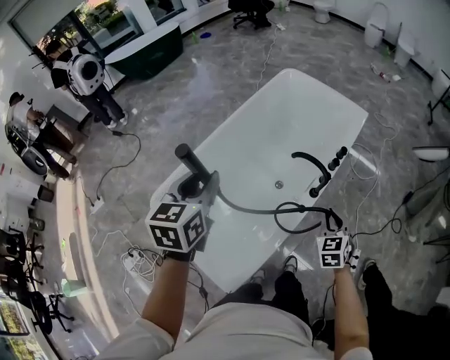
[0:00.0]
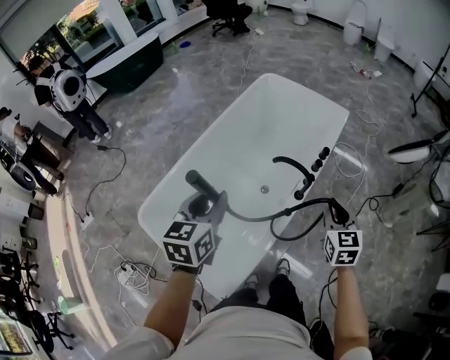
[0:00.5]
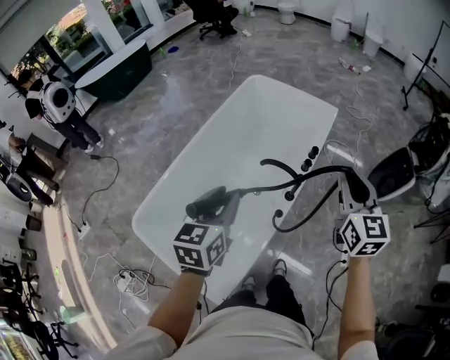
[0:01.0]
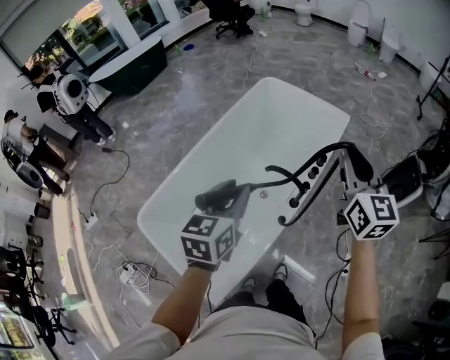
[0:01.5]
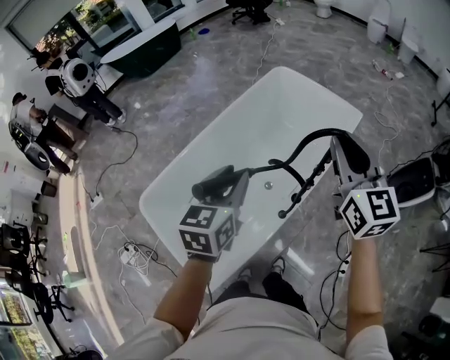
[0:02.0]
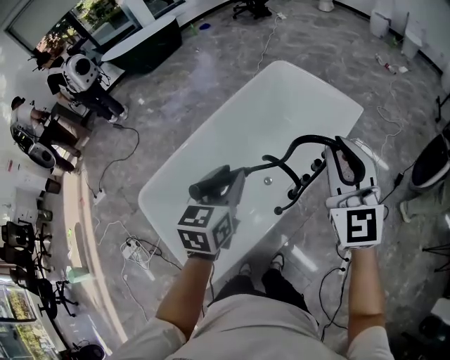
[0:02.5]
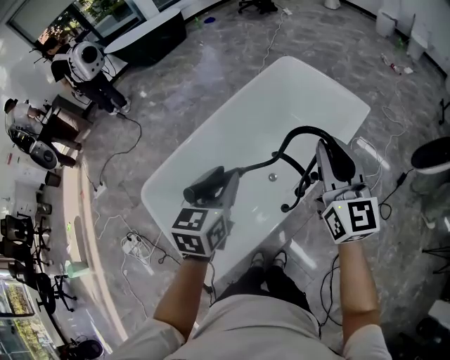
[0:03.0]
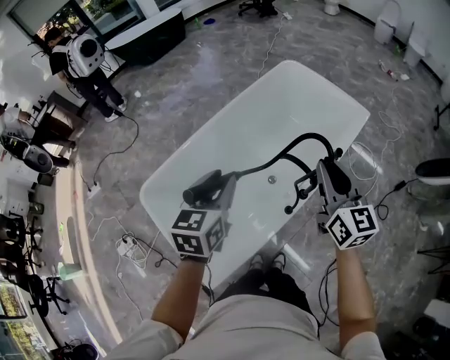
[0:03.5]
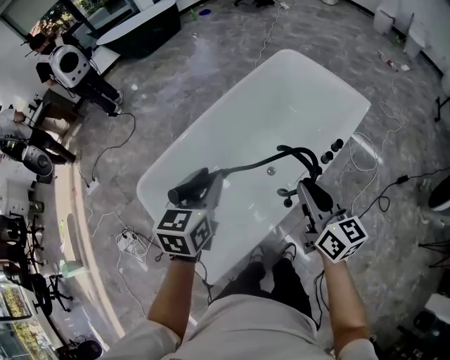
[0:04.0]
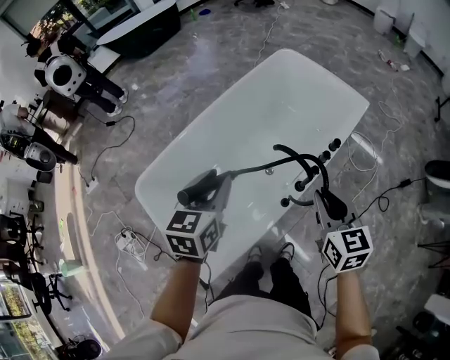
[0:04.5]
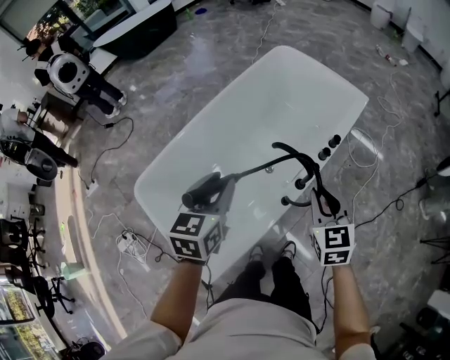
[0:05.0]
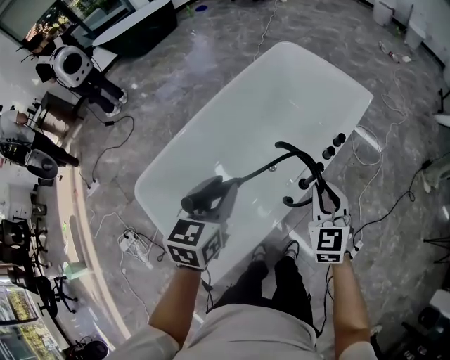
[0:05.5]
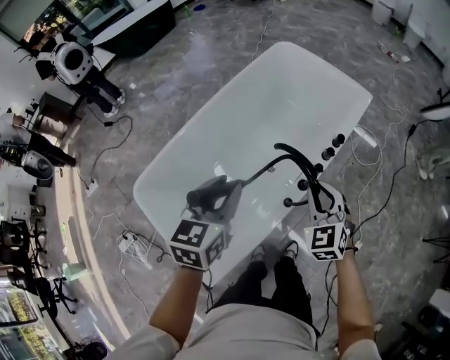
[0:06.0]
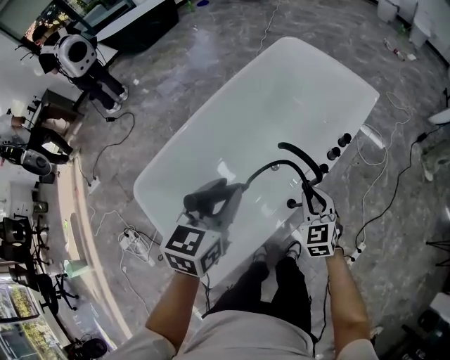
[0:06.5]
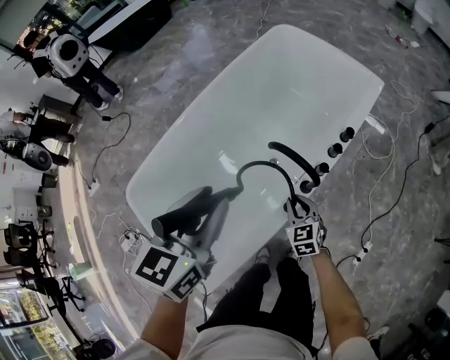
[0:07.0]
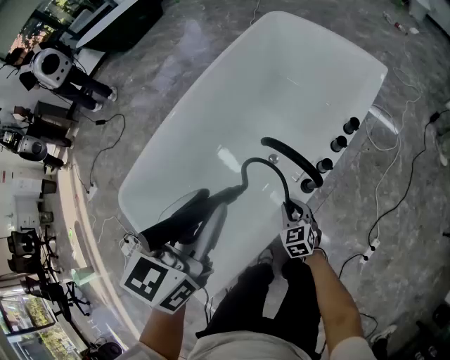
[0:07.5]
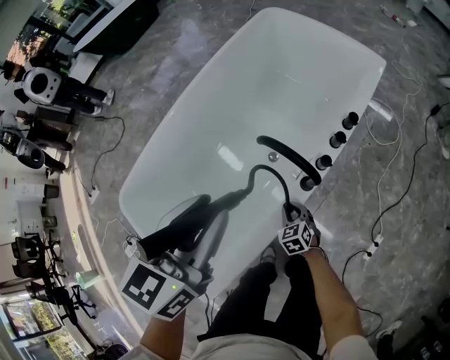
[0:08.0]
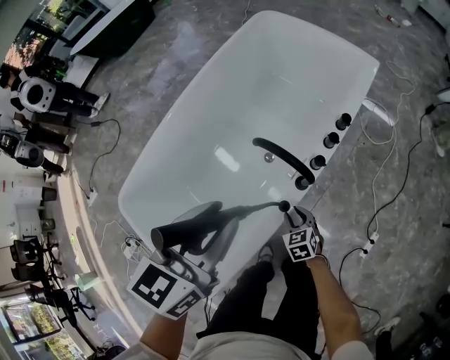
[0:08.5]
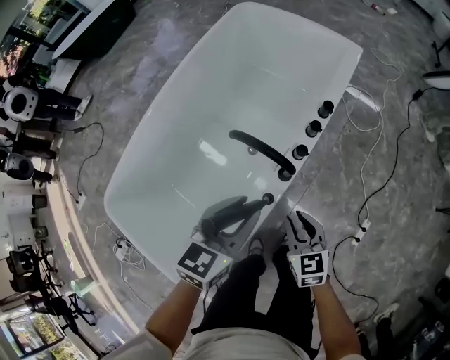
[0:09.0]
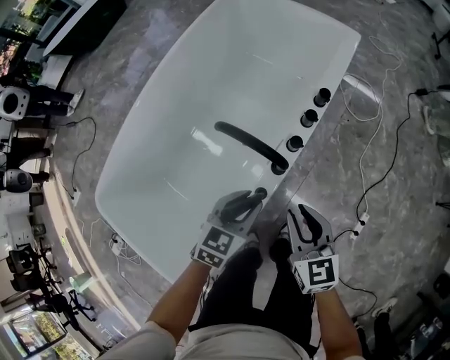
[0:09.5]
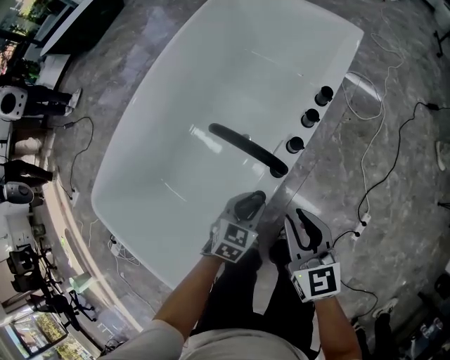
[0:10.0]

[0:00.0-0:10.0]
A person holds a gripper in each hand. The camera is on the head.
0:00.0 to 0:02.0: The right gripper heads upward and forward, covering about 35 cm, and points its fingers some 30 degrees further upward; the left gripper shifts roughly 20 cm to the right and forward.
0:02.0 to 0:04.0: The right gripper moves downward and to the left, approximately 20 cm, and turns by about 30 degrees. The left gripper shifts approximately 10 cm to the left and downward.
0:04.0 to 0:06.0: The right gripper goes approximately 10 cm downward, and rolls counterclockwise, seen from behind, by roughly 50 degrees; the left gripper goes some 5 cm to the right.
0:06.0 to 0:08.0: The right gripper shifts approximately 40 cm downward, and swivels approximately 30 degrees; the left gripper shifts some 5 cm to the right.
0:08.0 to 0:10.0: The left gripper goes roughly 35 cm downward, and changes its angle by some 30 degrees. The right gripper goes about 25 cm upward and to the right, and turns by some 40 degrees.

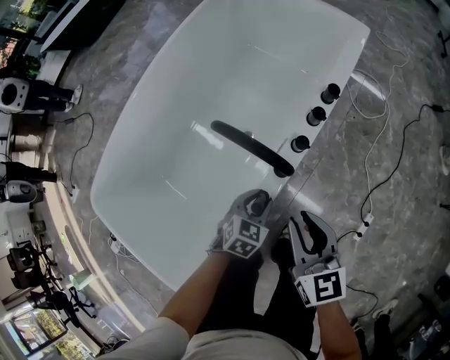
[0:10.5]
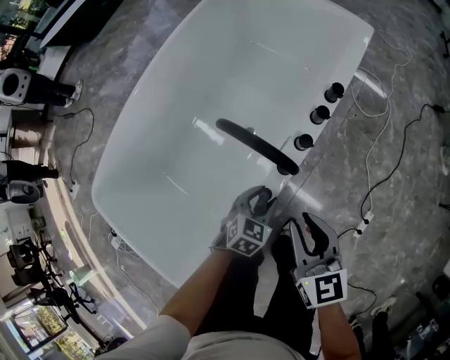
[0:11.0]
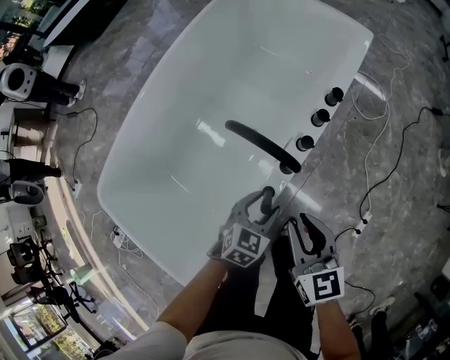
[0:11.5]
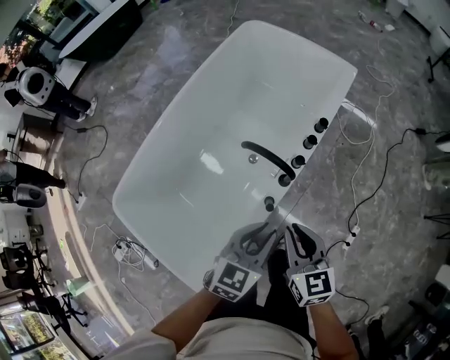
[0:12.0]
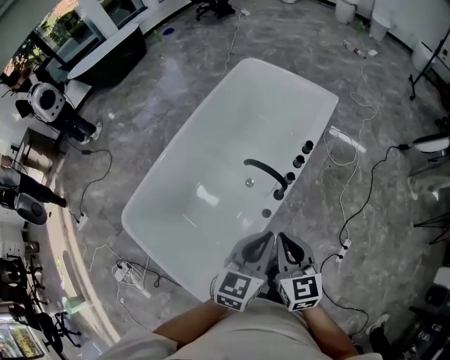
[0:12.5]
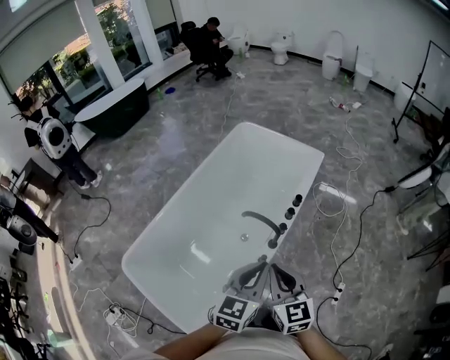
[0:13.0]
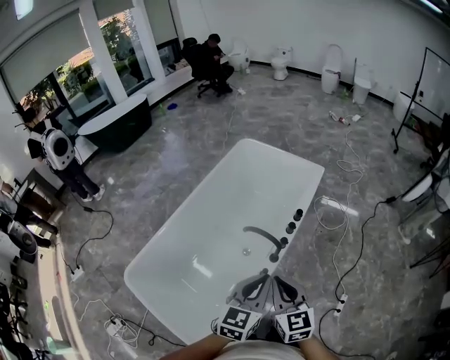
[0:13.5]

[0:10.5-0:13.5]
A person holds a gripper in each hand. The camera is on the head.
0:10.5 to 0:12.0: The left gripper heads upward, covering some 30 cm, and changes its angle by about 20 degrees, while the right gripper heads upward, covering approximately 10 cm.
0:12.0 to 0:13.5: Both grippers move upward, some 15 cm. The left gripper closes its fingers.

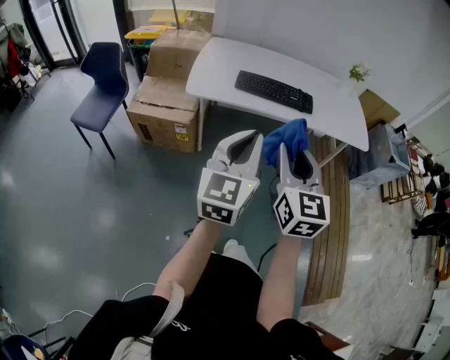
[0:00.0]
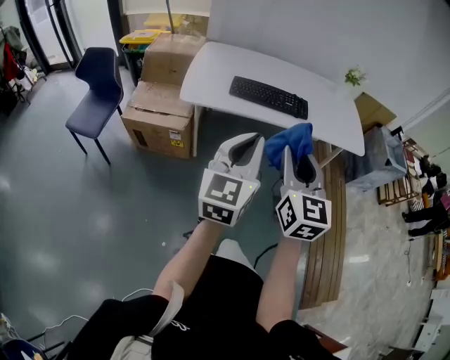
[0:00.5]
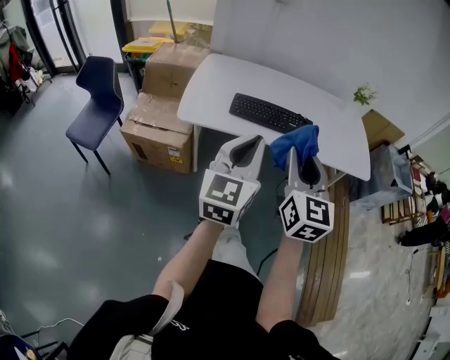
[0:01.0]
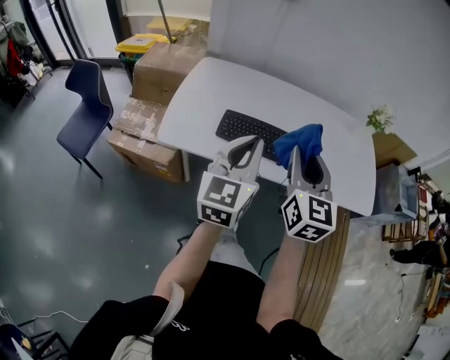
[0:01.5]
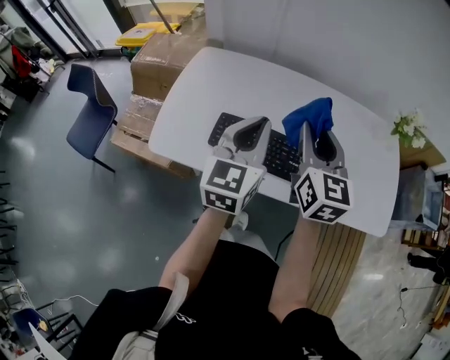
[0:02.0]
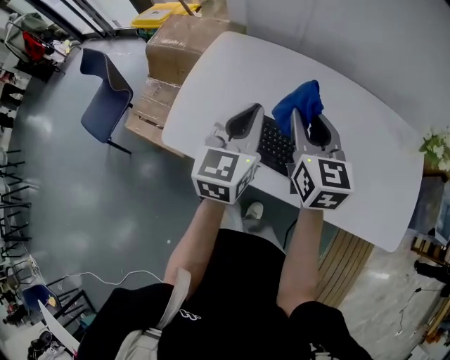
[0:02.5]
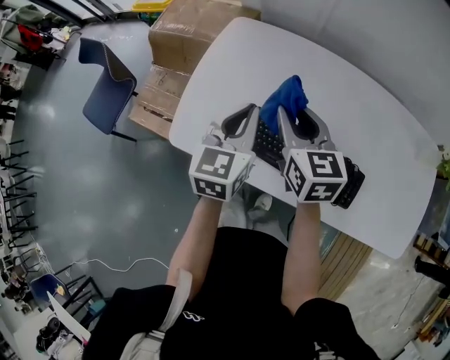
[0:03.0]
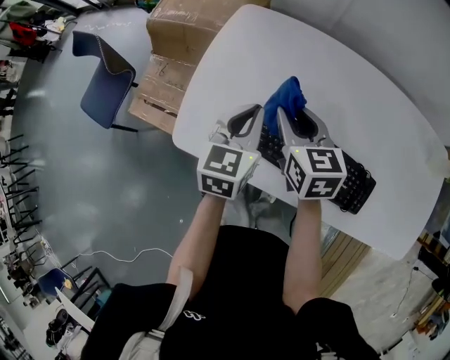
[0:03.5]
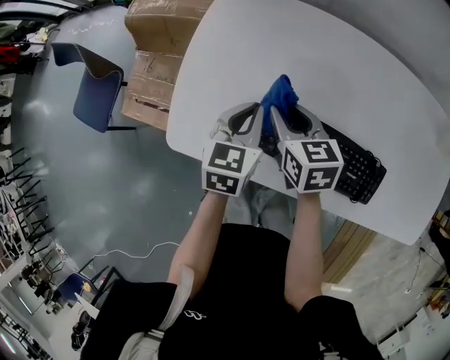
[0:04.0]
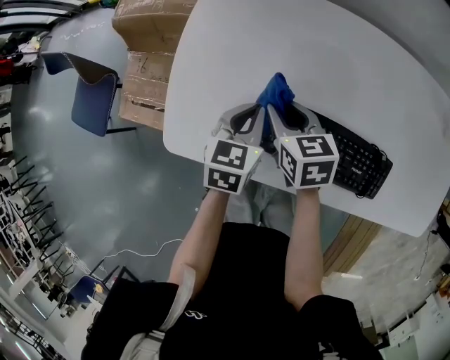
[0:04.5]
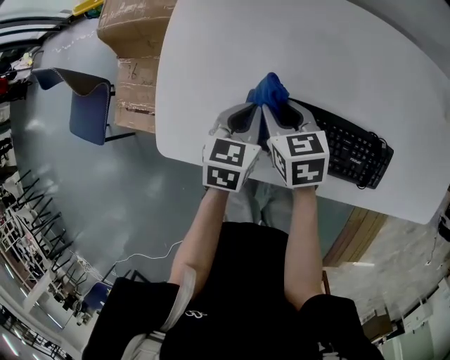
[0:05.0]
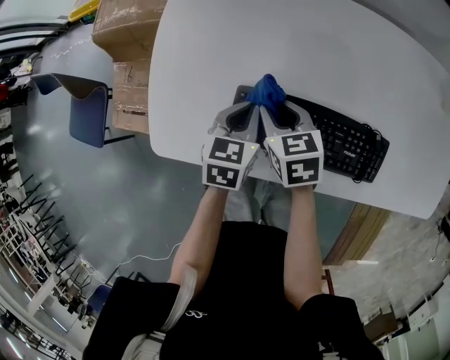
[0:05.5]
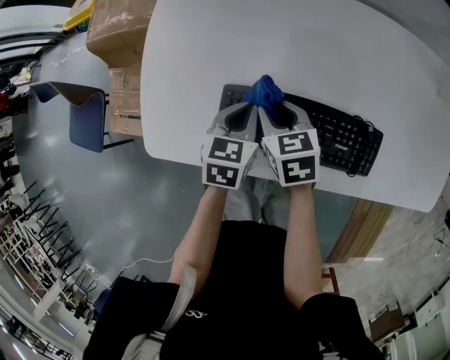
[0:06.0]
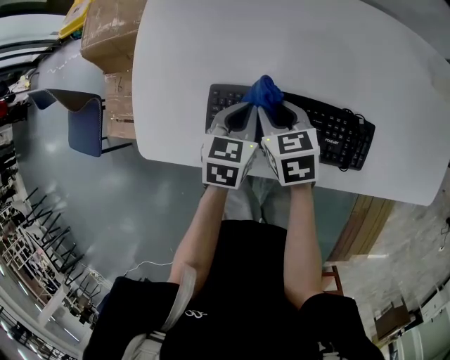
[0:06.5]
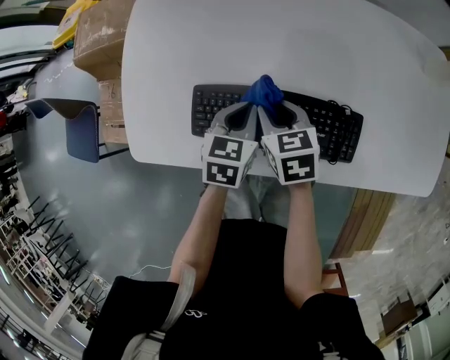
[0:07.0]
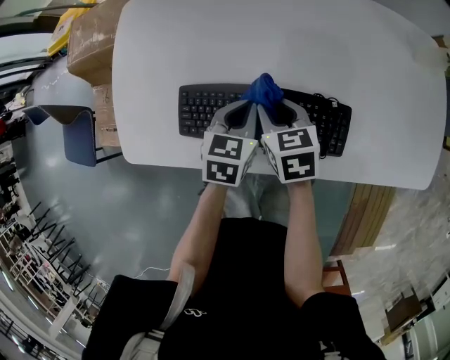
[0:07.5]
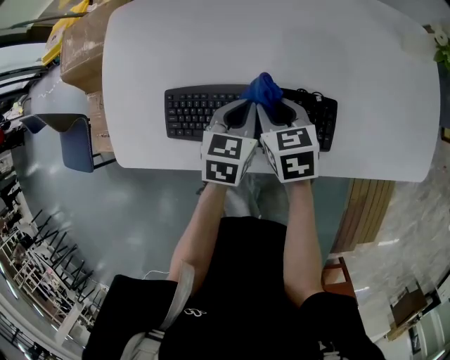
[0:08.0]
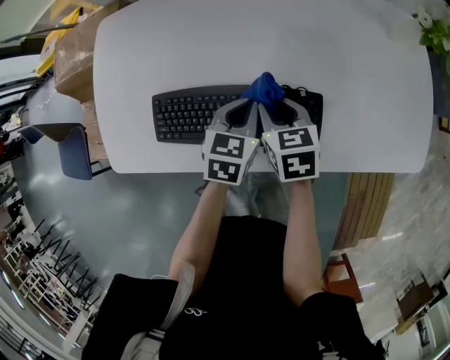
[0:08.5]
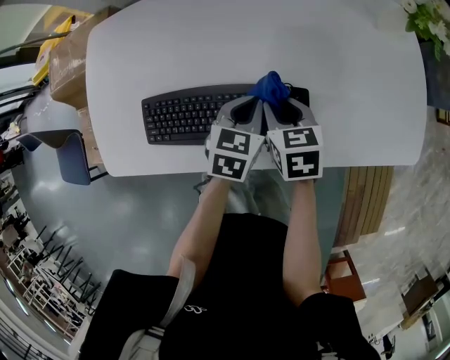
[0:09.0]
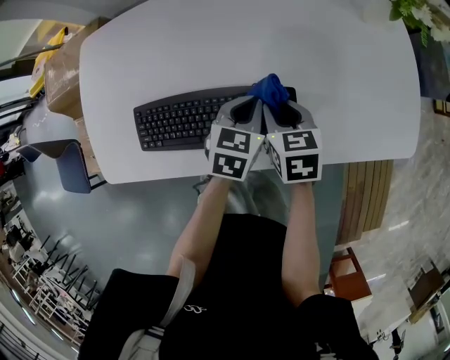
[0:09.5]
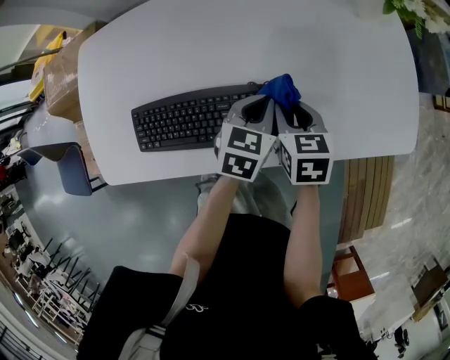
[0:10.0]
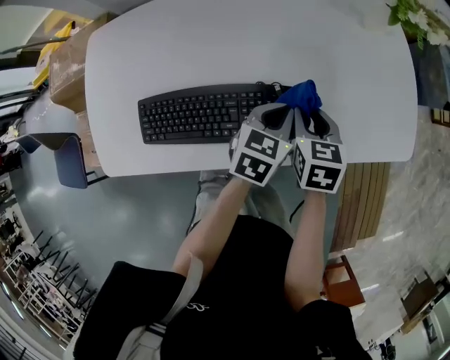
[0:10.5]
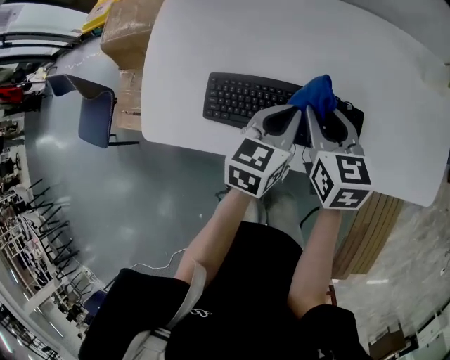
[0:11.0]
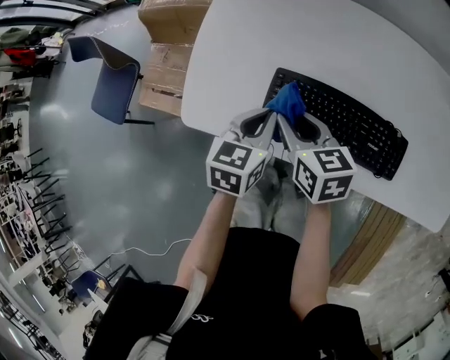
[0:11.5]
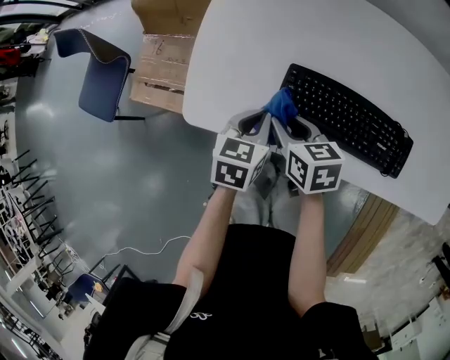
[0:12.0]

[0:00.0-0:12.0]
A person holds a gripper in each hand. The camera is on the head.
0:00.0 to 0:02.0: Both grippers are carried forward, approximately 50 cm.
0:02.0 to 0:04.0: The two grippers go roughly 35 cm downward, to the left and forward. The right gripper turns by roughly 40 degrees; the left gripper rotates approximately 30 degrees.
0:04.0 to 0:06.0: Both grippers move to the right and downward, some 10 cm.
0:06.0 to 0:08.0: Both grippers move to the right, about 15 cm.
0:08.0 to 0:10.0: Both grippers travel together to the right, roughly 15 cm.
0:10.0 to 0:12.0: The pair of grippers is taken approximately 40 cm. The left gripper swivels roughly 30 degrees; the right gripper turns by approximately 30 degrees.

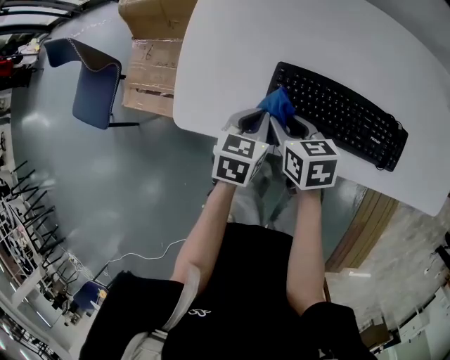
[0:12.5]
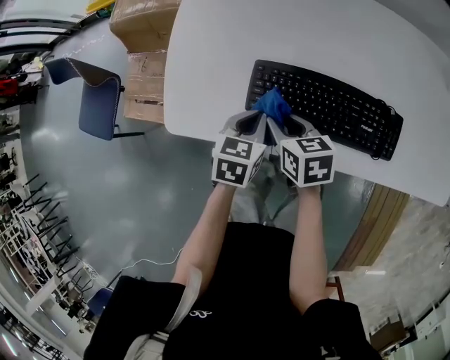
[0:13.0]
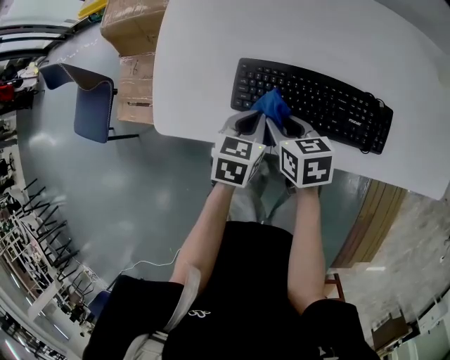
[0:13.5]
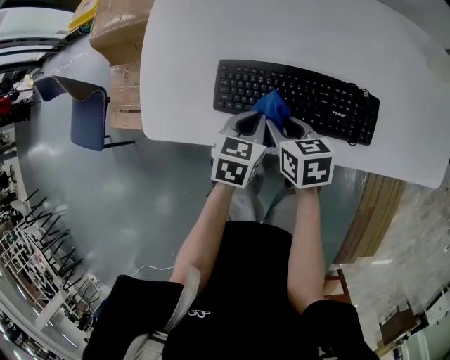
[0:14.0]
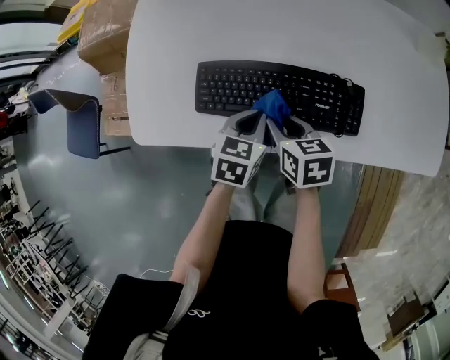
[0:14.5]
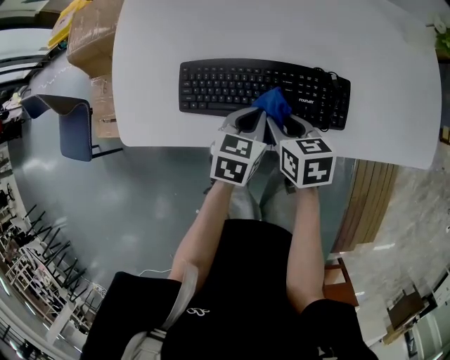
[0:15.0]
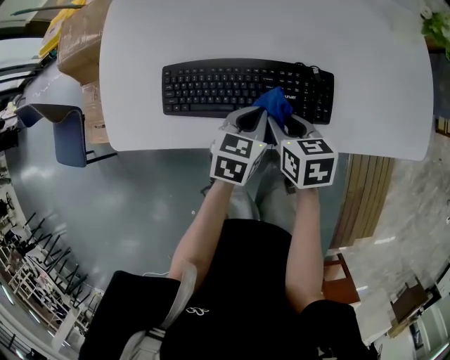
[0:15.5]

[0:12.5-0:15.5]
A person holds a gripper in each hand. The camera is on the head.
0:12.5 to 0:14.0: Both grippers travel together to the right, about 10 cm.
0:14.0 to 0:15.5: Both grippers travel together to the right, approximately 15 cm.
